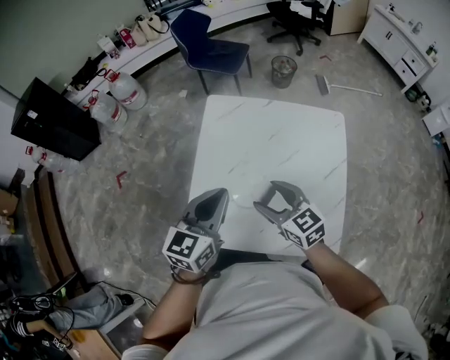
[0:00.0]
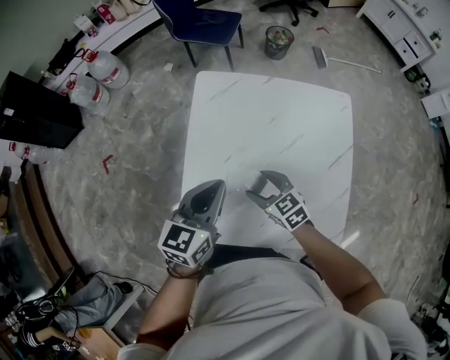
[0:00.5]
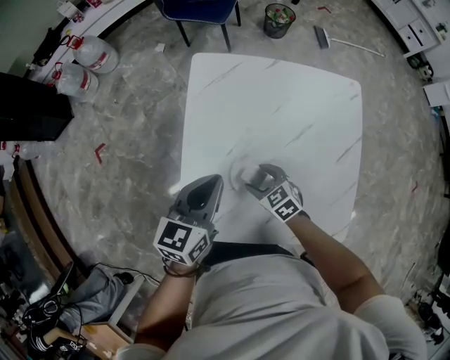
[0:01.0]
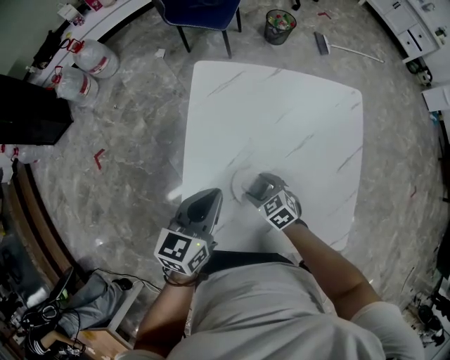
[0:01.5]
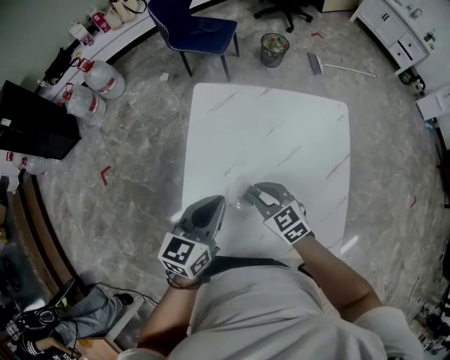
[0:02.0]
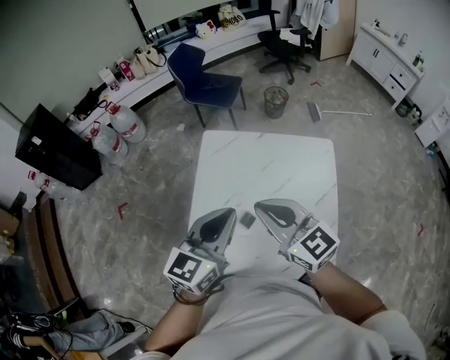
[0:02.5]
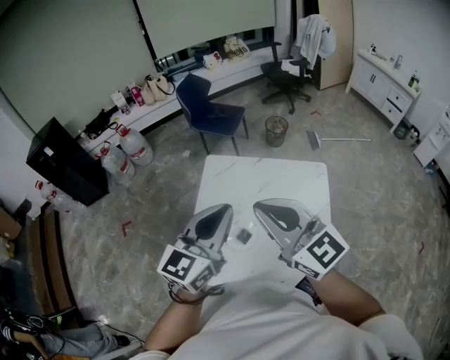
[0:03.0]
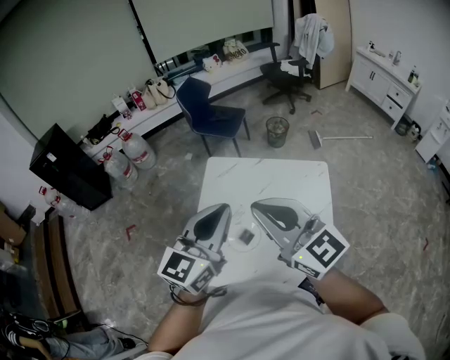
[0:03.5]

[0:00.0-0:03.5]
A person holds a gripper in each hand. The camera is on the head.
0:00.0 to 0:02.0: The two grippers go some 15 cm downward and forward. The right gripper closes its fingers.
0:02.0 to 0:03.5: Both grippers travel together upward, roughly 35 cm. The left gripper swivels roughly 30 degrees, while the right gripper angles its fingers upward, by some 40 degrees.

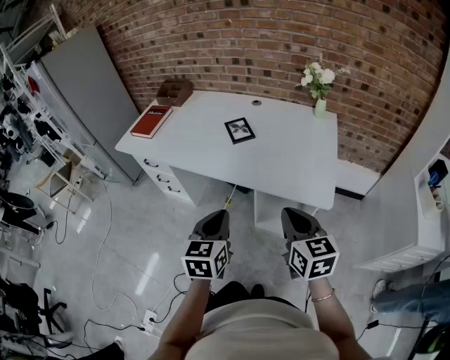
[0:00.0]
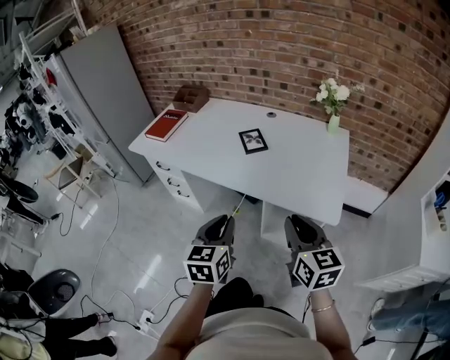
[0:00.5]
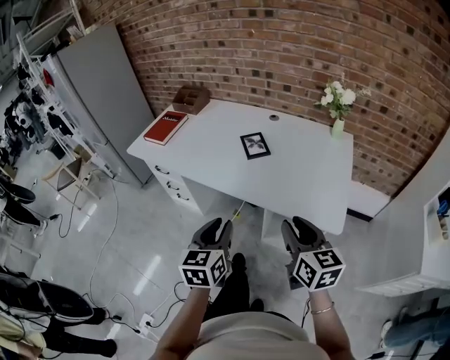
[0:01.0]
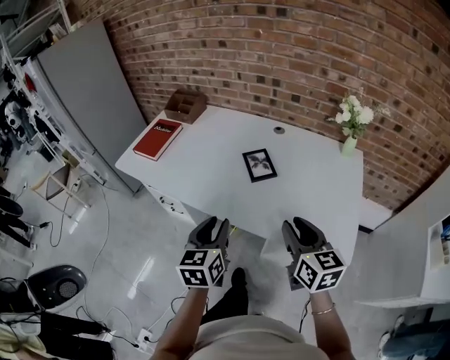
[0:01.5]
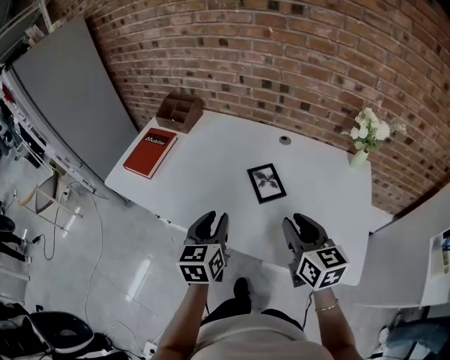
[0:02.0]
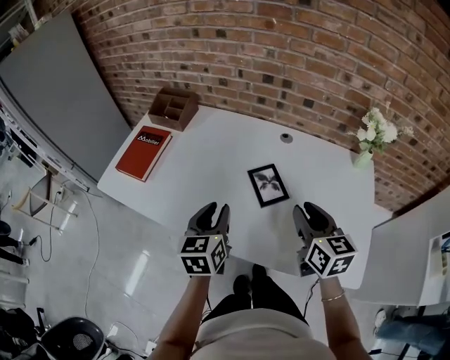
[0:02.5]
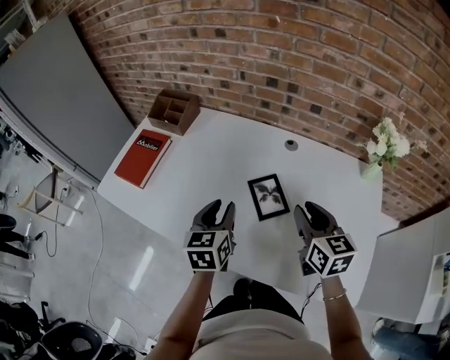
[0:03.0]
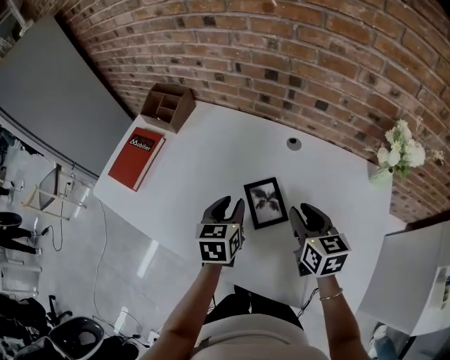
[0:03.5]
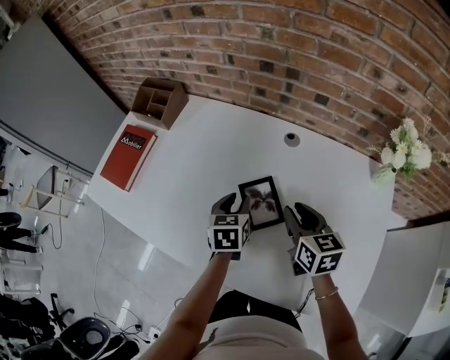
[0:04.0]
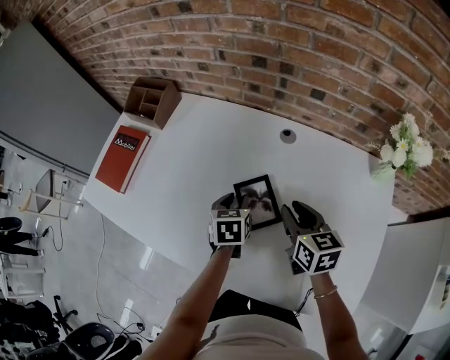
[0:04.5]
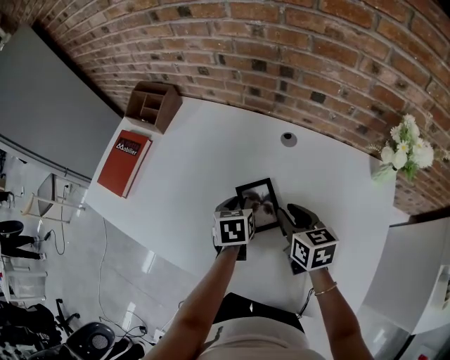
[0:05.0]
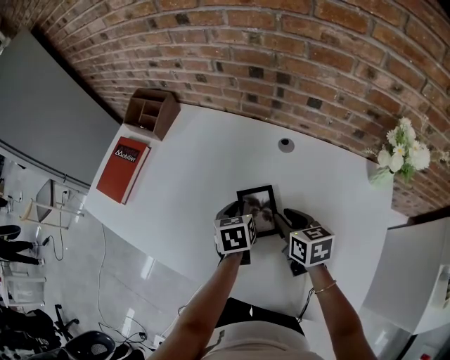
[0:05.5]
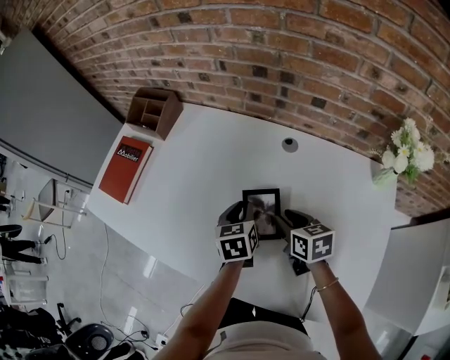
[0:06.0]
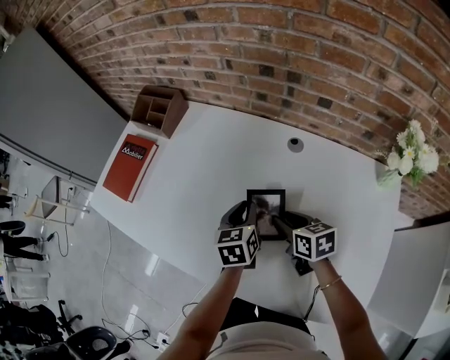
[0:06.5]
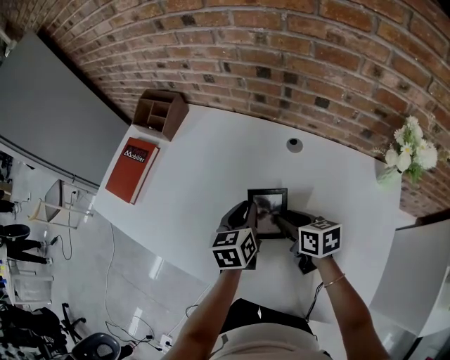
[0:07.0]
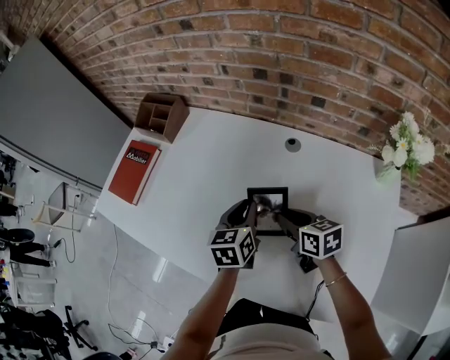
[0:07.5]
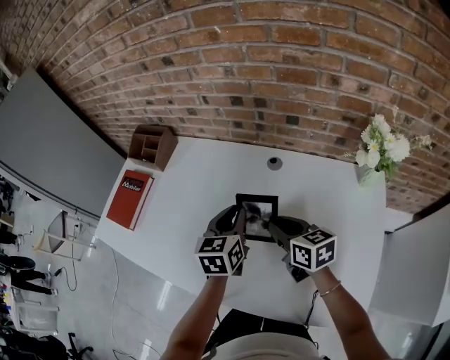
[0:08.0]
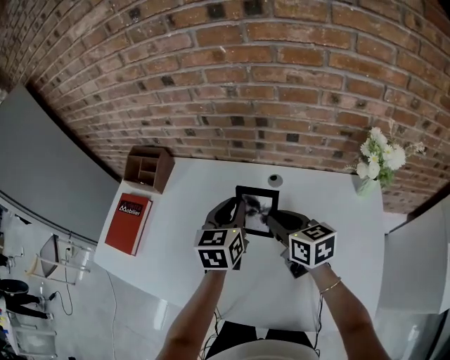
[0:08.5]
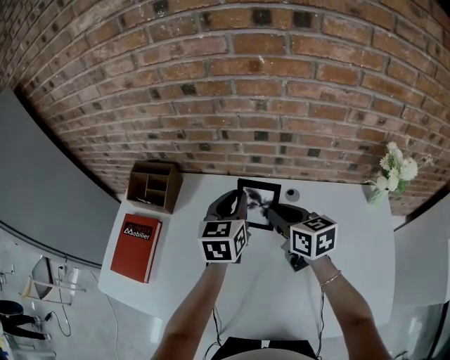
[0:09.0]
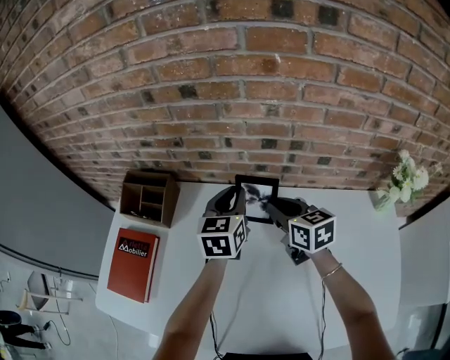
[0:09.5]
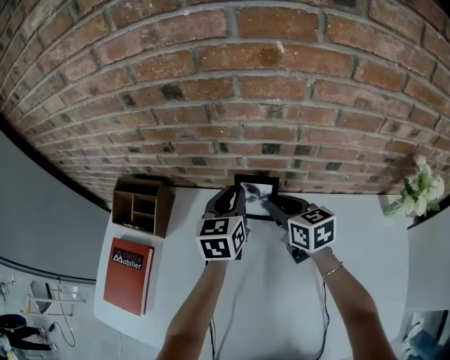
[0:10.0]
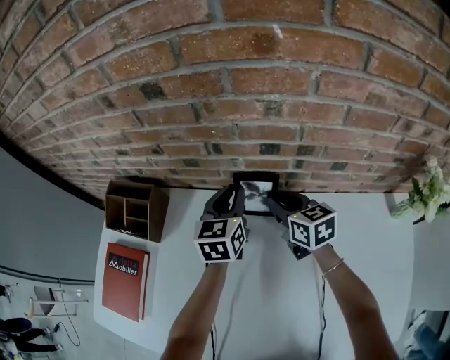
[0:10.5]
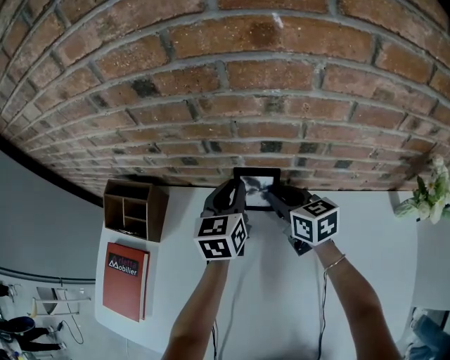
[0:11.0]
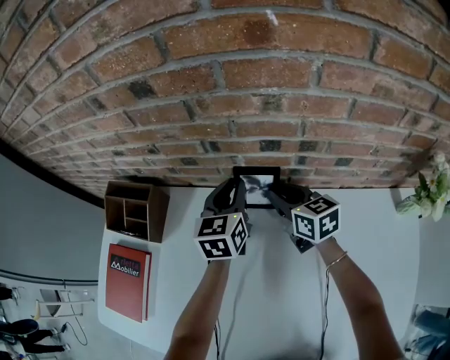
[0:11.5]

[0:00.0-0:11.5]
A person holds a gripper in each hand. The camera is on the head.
0:00.0 to 0:02.0: The grippers both shift forward by approximately 30 cm. The right gripper opens, while the left gripper opens its fingers.
0:02.0 to 0:04.0: The left gripper is displaced forward, downward and to the right by approximately 25 cm, and changes its angle by some 20 degrees. Meanwhile the right gripper heads forward and downward, covering some 20 cm.
0:04.0 to 0:06.0: The right gripper is displaced downward by approximately 5 cm.
0:06.0 to 0:07.5: The grippers move only a little.
0:07.5 to 0:09.5: The two grippers go approximately 25 cm forward and upward. The left gripper swivels roughly 20 degrees. Meanwhile the right gripper changes its angle by approximately 20 degrees.
0:09.5 to 0:11.5: The grippers both shift forward and downward by approximately 10 cm.

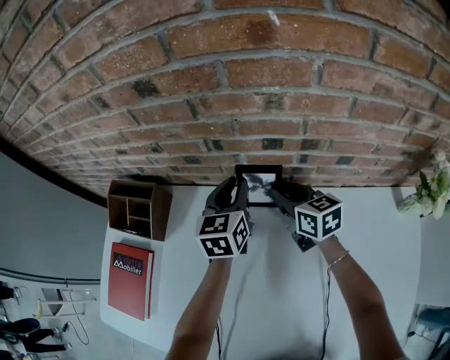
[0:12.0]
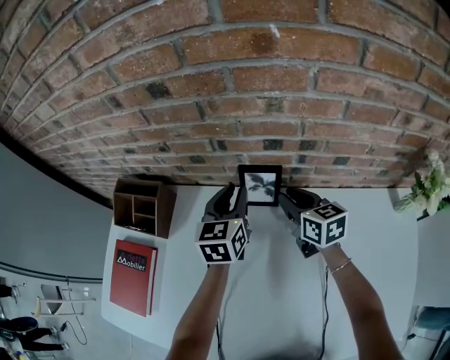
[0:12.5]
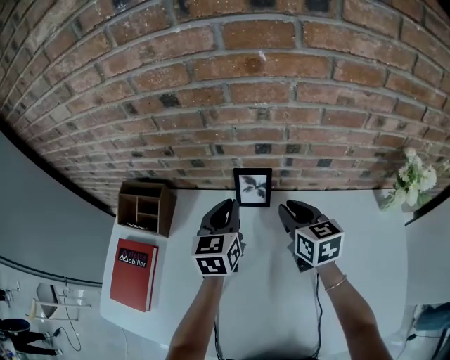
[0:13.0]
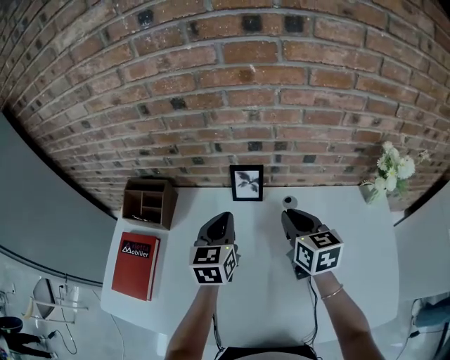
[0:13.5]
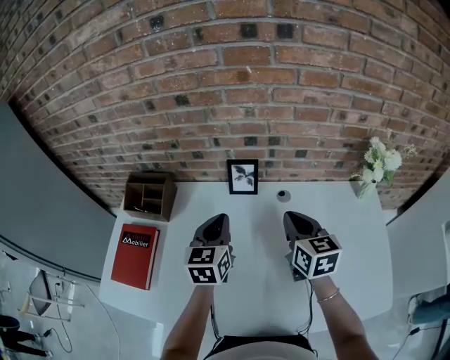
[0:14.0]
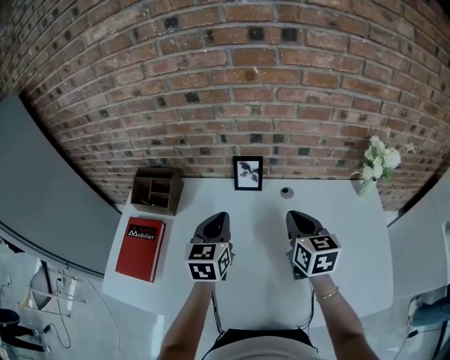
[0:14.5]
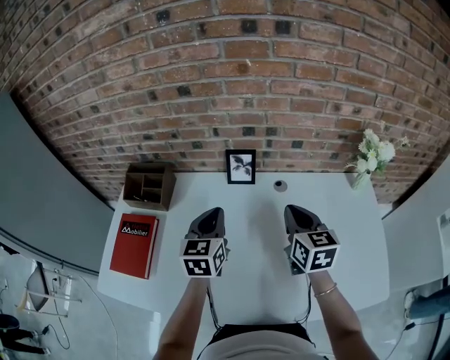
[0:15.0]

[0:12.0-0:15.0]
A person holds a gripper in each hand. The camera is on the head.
0:12.0 to 0:13.5: The right gripper moves backward and upward, roughly 20 cm, while the left gripper moves backward, about 15 cm.
0:13.5 to 0:15.0: The grippers both shift backward by approximately 5 cm.

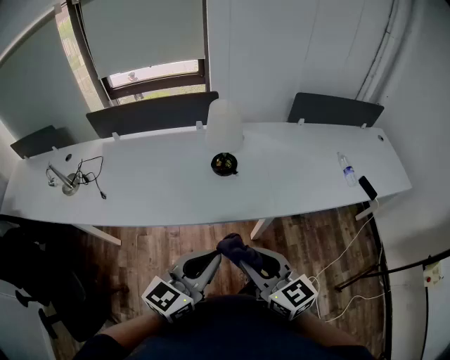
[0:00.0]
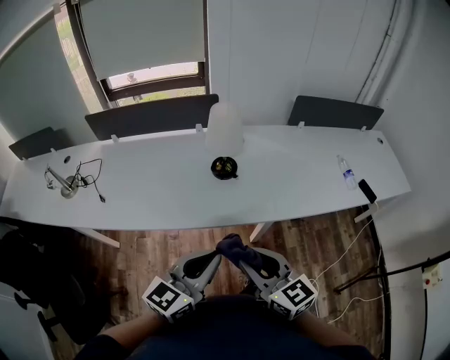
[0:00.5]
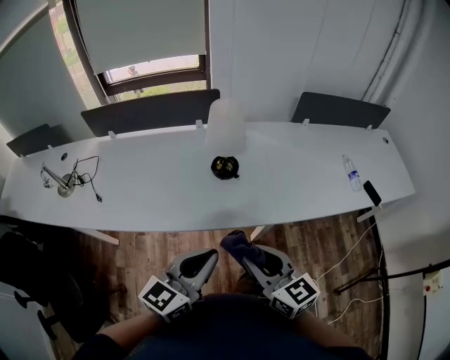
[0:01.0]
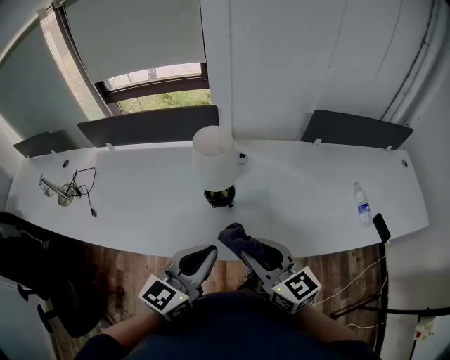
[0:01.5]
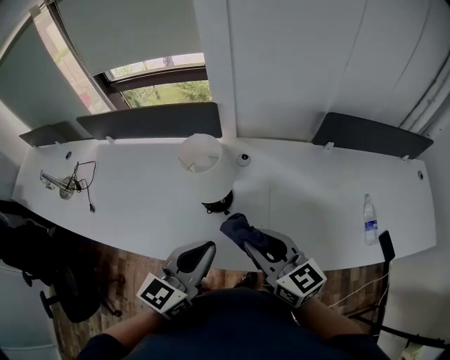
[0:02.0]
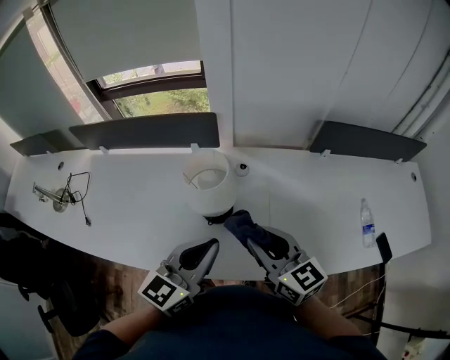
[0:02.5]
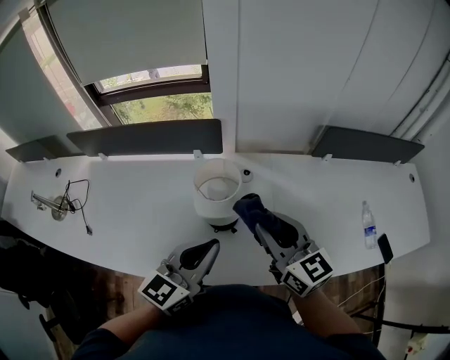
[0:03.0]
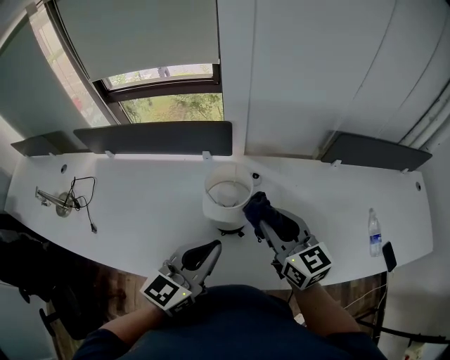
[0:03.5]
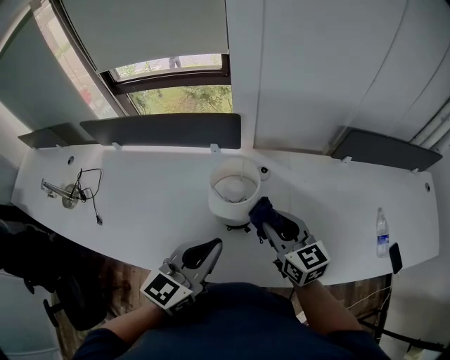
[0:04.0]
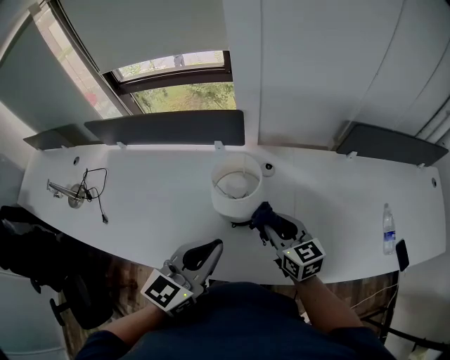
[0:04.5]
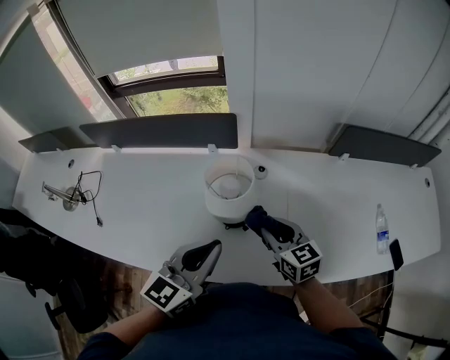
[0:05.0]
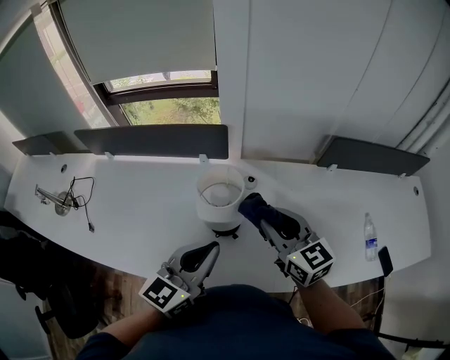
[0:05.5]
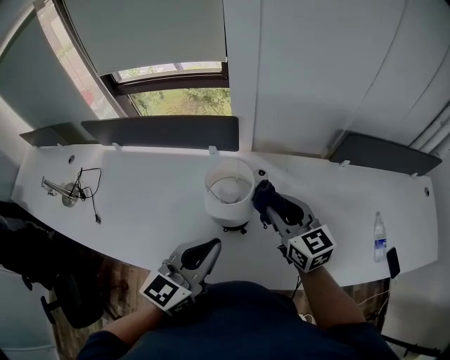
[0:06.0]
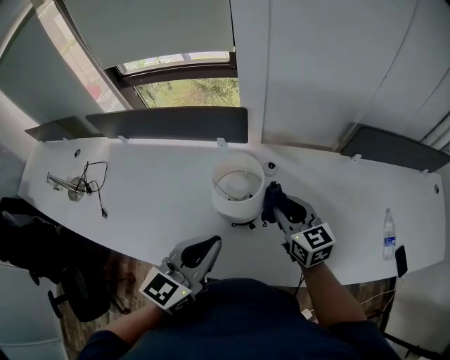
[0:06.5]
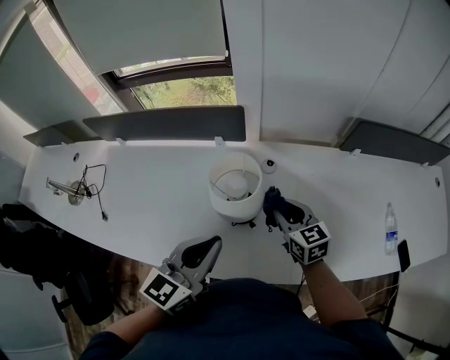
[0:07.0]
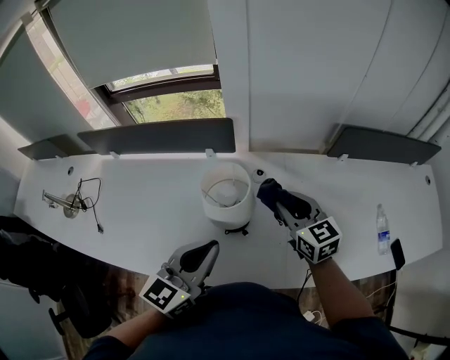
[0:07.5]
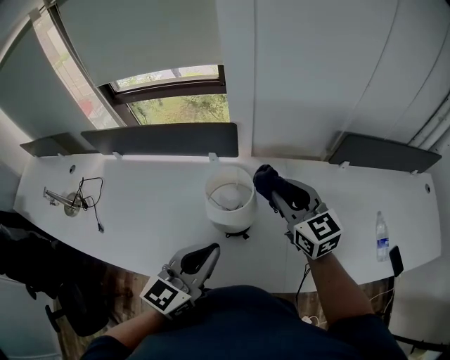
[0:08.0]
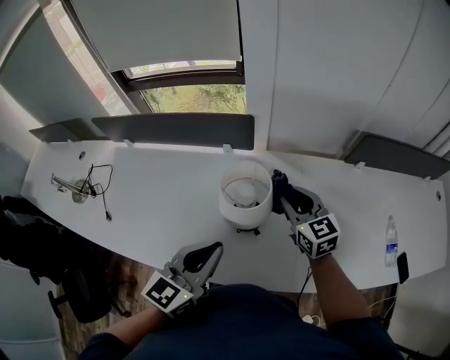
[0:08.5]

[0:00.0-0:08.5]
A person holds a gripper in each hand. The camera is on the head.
0:00.0 to 0:02.0: Both grippers travel together forward, approximately 30 cm.
0:02.0 to 0:04.0: The right gripper goes some 10 cm forward. Meanwhile the left gripper is displaced to the left and forward by roughly 10 cm.
0:04.0 to 0:06.5: The right gripper moves up and down over some 10 cm, changing direction 2 times.
0:06.5 to 0:08.5: The right gripper moves up and down over some 15 cm, changing direction 2 times.
